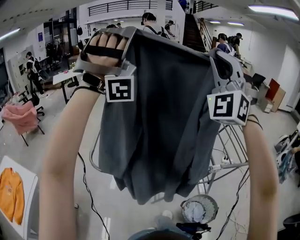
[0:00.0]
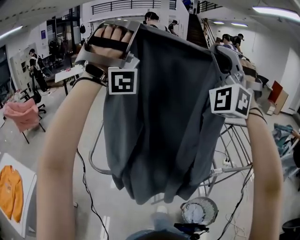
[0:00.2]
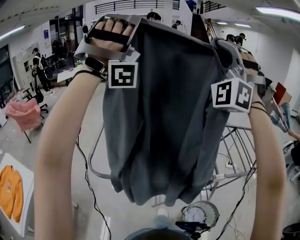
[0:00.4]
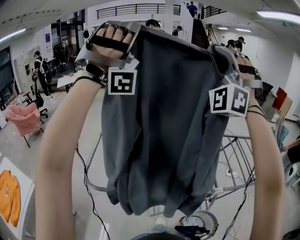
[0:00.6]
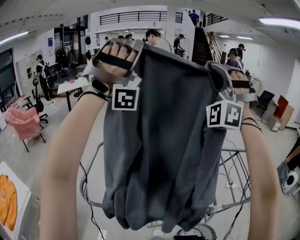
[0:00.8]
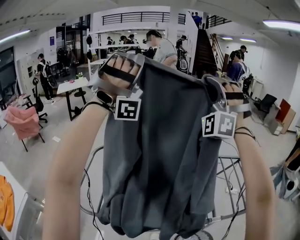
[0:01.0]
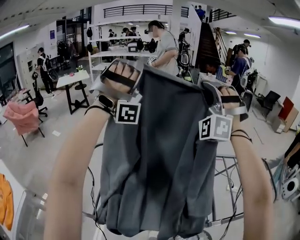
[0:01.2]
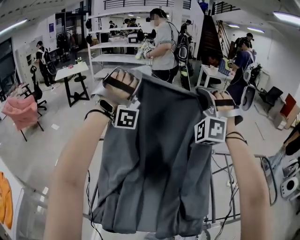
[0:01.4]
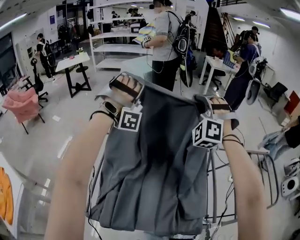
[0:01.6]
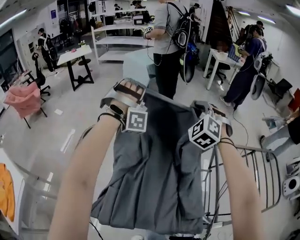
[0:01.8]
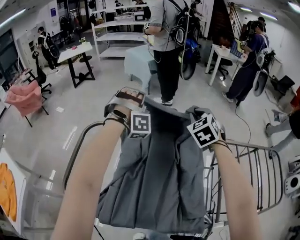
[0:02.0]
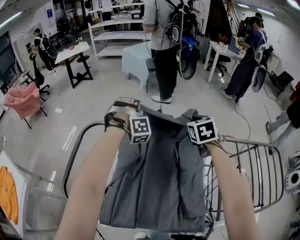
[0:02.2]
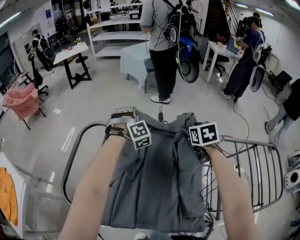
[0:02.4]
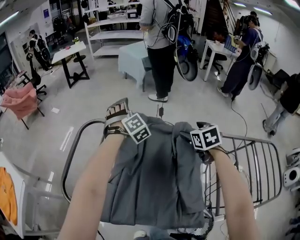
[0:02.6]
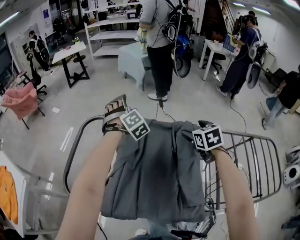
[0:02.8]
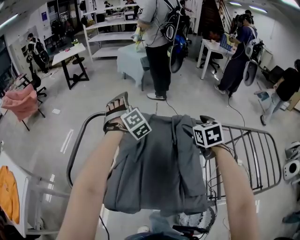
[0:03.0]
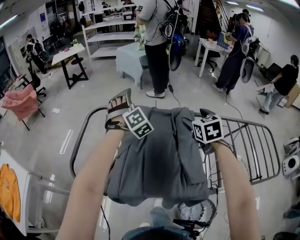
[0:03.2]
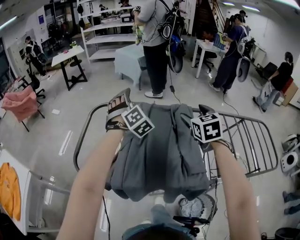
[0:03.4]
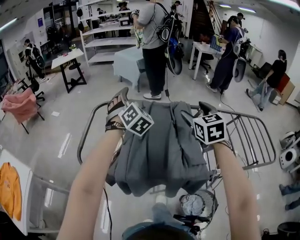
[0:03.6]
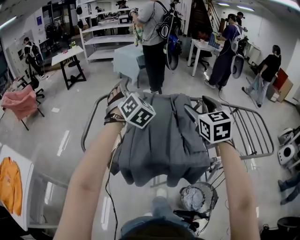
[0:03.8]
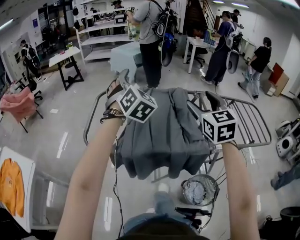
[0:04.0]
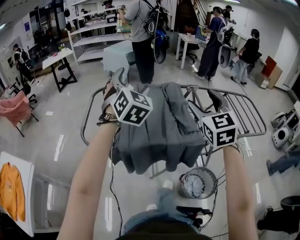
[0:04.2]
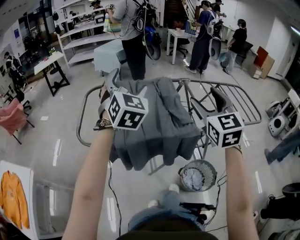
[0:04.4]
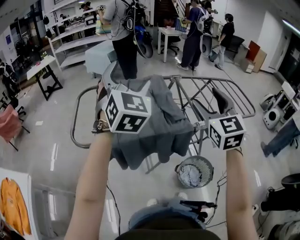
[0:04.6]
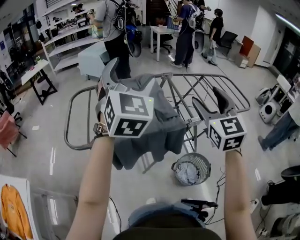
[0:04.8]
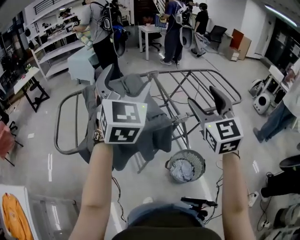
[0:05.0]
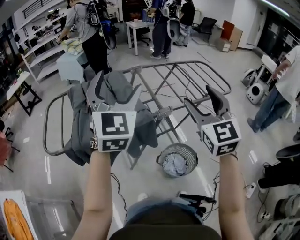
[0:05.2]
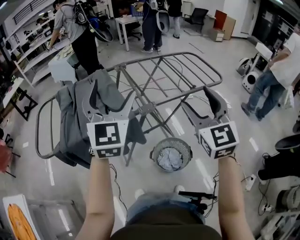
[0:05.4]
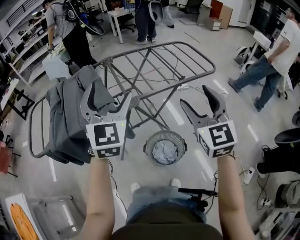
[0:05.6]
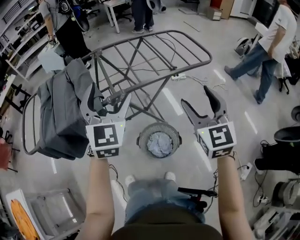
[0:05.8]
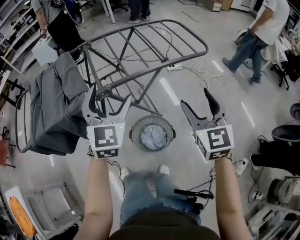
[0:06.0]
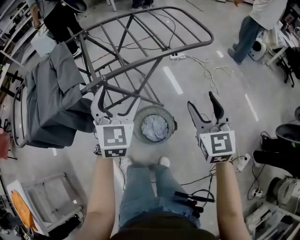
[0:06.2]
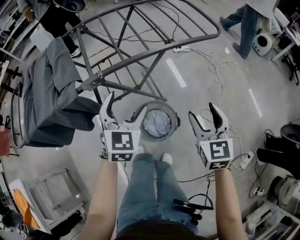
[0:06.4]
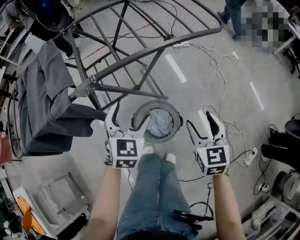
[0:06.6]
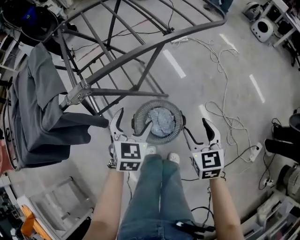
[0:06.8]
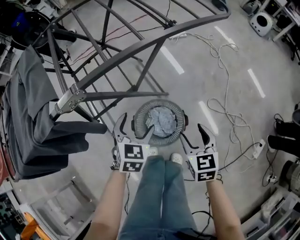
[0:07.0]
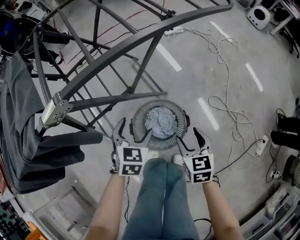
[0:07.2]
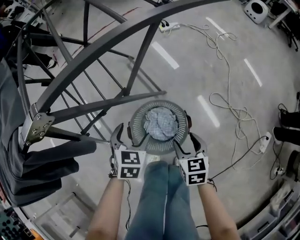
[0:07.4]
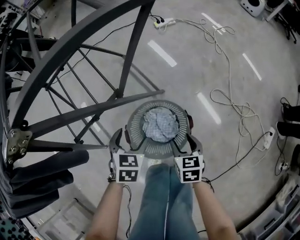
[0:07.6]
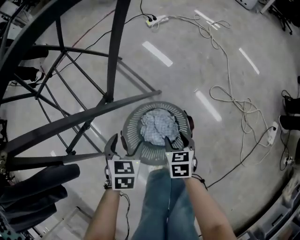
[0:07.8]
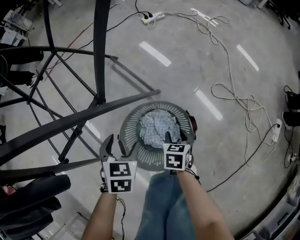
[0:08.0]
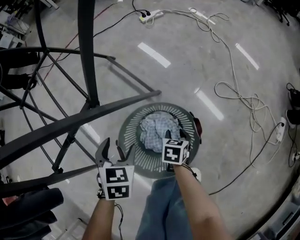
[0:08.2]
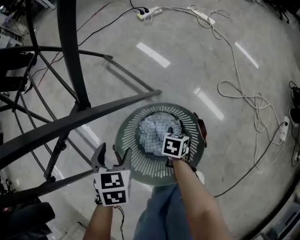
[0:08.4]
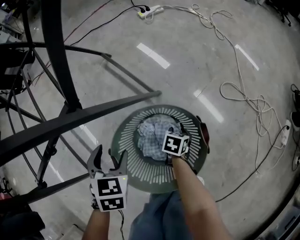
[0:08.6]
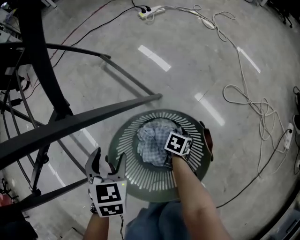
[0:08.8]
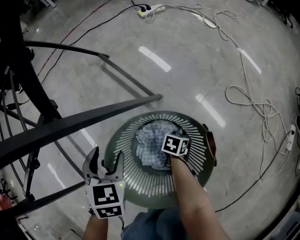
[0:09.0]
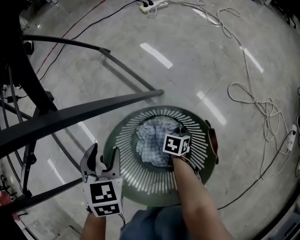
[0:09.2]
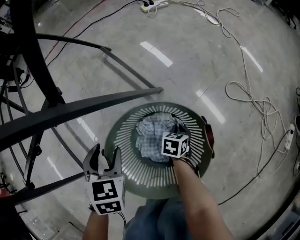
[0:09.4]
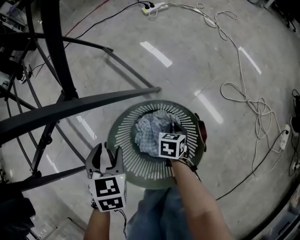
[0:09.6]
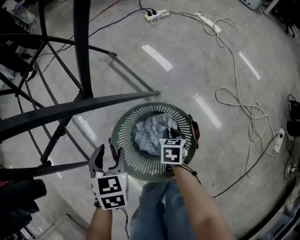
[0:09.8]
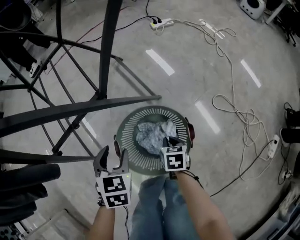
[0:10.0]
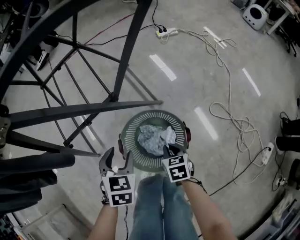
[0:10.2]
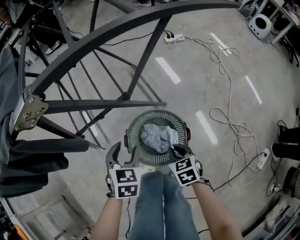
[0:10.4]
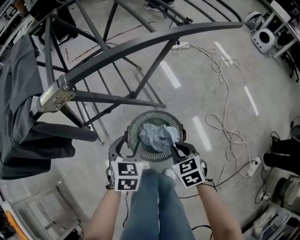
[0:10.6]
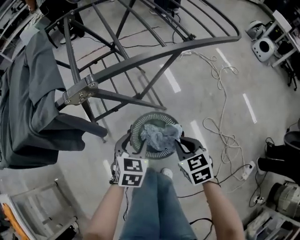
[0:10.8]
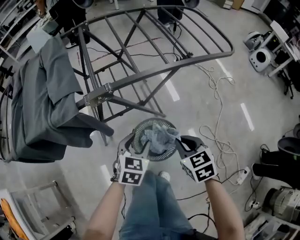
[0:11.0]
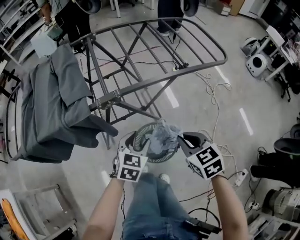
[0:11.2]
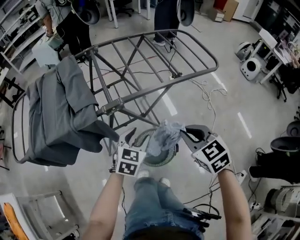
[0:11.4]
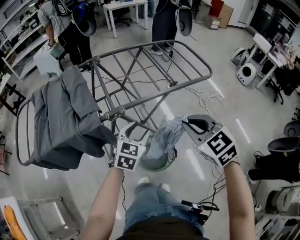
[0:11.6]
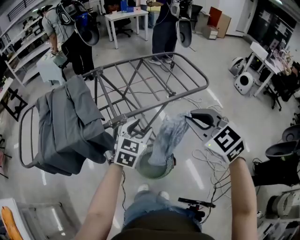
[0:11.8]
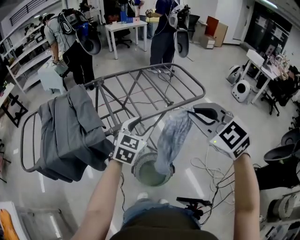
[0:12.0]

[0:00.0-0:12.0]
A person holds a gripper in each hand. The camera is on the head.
0:00.0 to 0:01.6: Both grippers are carried forward, roughly 40 cm. Both grippers move downward, some 25 cm. The left gripper tilts its fingers about 40 degrees downward. The right gripper tilts its fingers approximately 40 degrees downward.
0:01.6 to 0:03.0: The right gripper shifts about 20 cm downward and backward, rotates around the line of its fingers by about 80 degrees, clockwise from behind, and opens its fingers. The left gripper heads downward, covering roughly 20 cm, twists about 60 degrees counterclockwise, seen from behind, and opens.
0:03.0 to 0:04.4: The two grippers go about 40 cm backward and upward. The left gripper changes its angle by some 50 degrees. Meanwhile the right gripper tilts its fingers approximately 30 degrees upward.
0:04.4 to 0:06.0: The two grippers travel together, to the right, some 50 cm. The left gripper rotates approximately 20 degrees.
0:06.0 to 0:07.6: Both grippers travel together downward, some 50 cm. The right gripper tips its fingers downward by some 40 degrees. Meanwhile the left gripper angles its fingers downward, by some 50 degrees.
0:07.6 to 0:09.0: The left gripper goes roughly 20 cm downward. Meanwhile the right gripper goes about 40 cm downward, and changes its angle by roughly 40 degrees.
0:09.0 to 0:10.4: The right gripper heads upward, covering some 40 cm, and changes its angle by about 60 degrees. The left gripper moves upward, about 25 cm.
0:10.4 to 0:12.0: The two grippers go roughly 60 cm upward. The right gripper twists about 50 degrees counterclockwise, seen from behind; the left gripper tilts its fingers about 30 degrees upward.

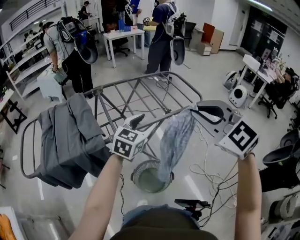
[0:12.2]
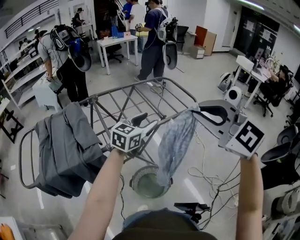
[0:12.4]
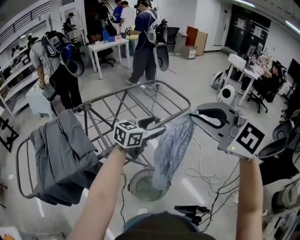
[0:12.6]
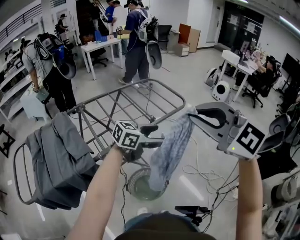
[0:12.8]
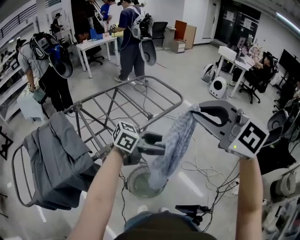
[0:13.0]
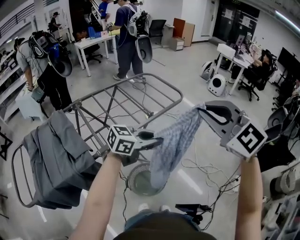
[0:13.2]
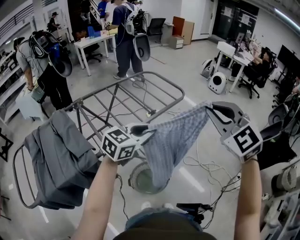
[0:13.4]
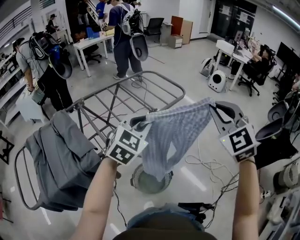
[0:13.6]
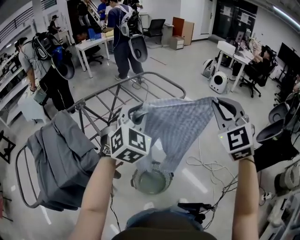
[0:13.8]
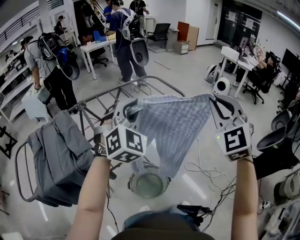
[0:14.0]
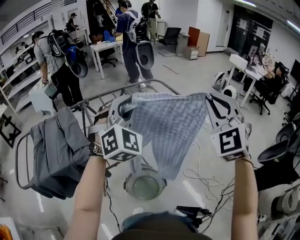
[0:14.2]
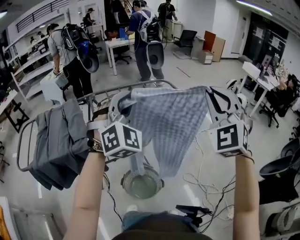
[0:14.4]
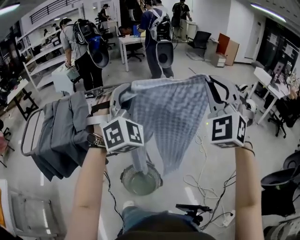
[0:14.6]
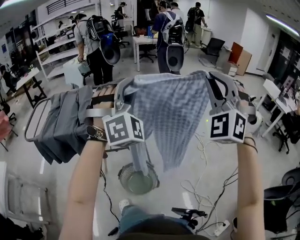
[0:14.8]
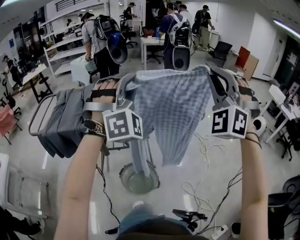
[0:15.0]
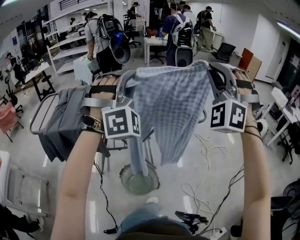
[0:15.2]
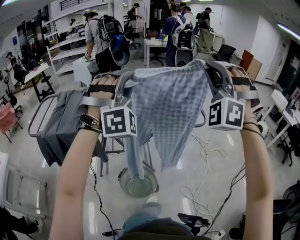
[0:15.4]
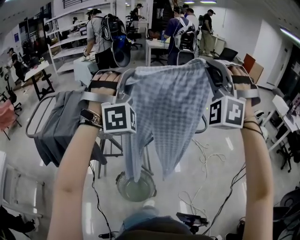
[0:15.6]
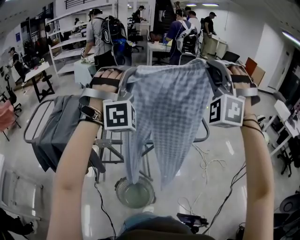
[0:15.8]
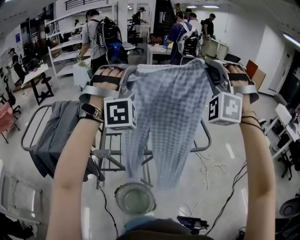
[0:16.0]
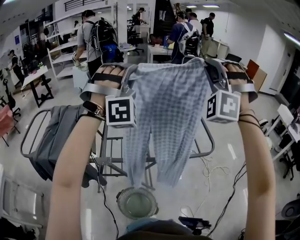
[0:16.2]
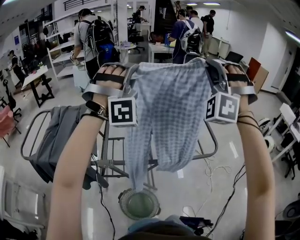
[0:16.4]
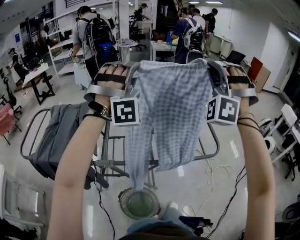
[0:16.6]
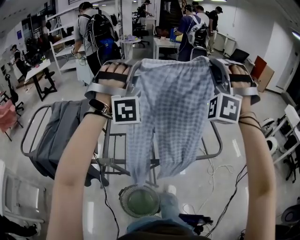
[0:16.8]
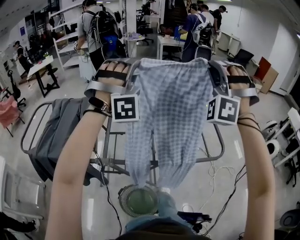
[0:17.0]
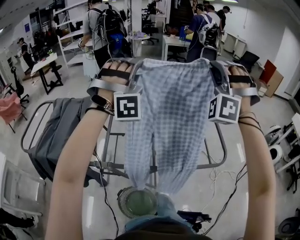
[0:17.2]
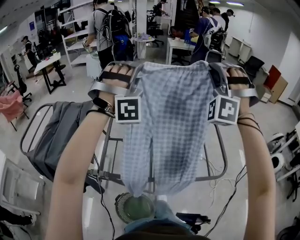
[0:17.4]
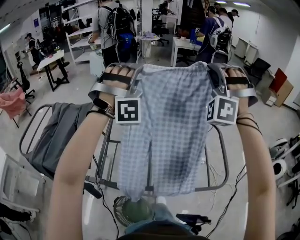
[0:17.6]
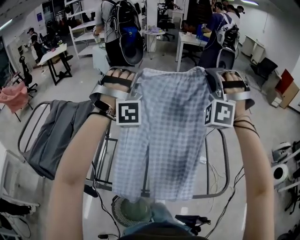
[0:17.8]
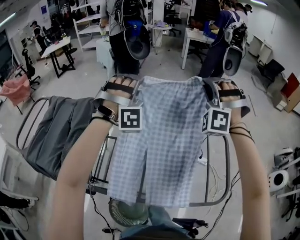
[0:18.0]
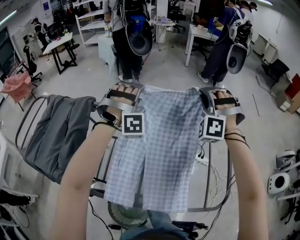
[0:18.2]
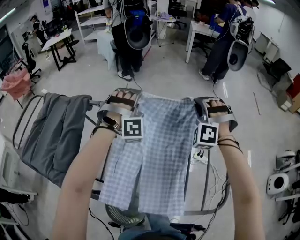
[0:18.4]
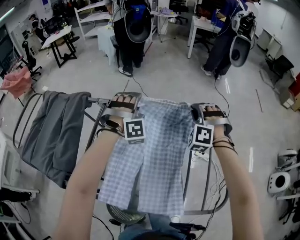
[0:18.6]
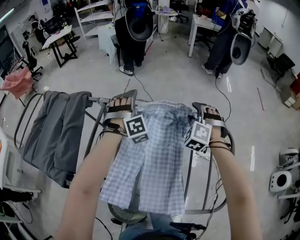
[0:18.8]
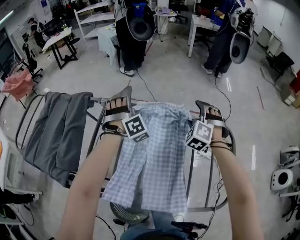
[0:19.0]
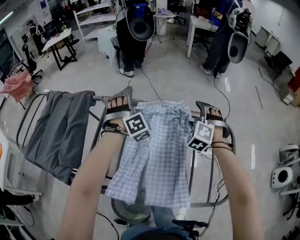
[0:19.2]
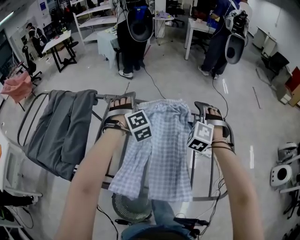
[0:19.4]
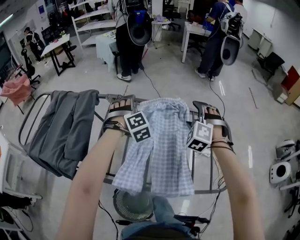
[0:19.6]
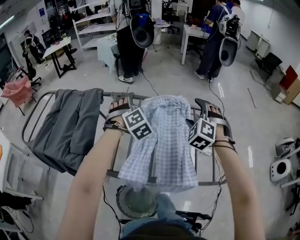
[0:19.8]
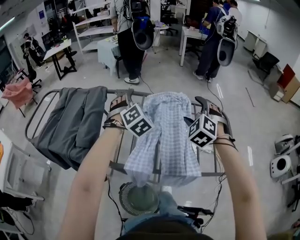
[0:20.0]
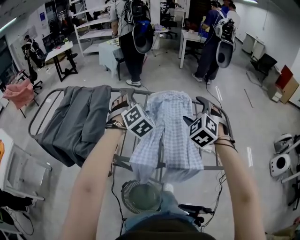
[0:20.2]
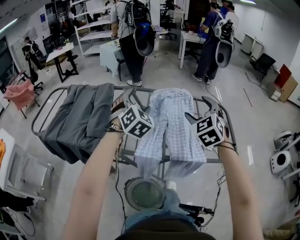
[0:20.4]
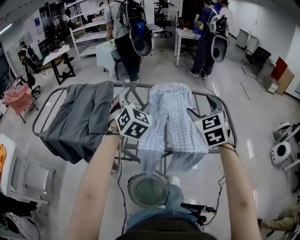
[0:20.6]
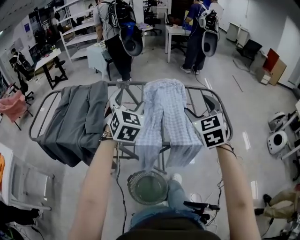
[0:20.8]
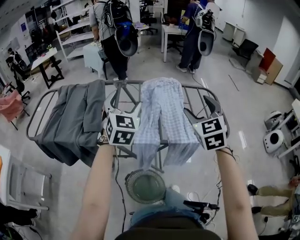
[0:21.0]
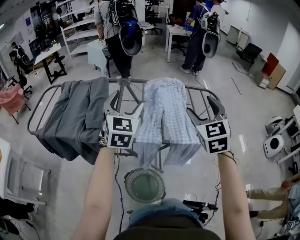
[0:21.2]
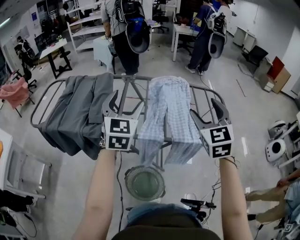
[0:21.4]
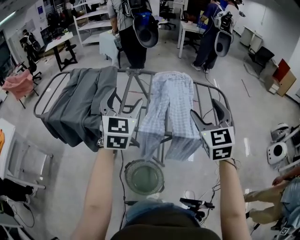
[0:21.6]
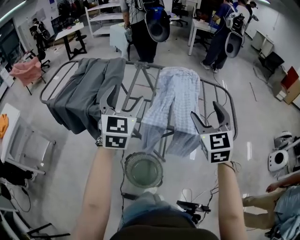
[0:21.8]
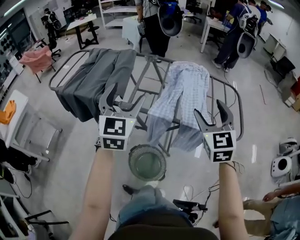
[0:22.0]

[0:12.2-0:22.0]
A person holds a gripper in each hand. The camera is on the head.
0:12.2 to 0:13.6: The right gripper changes place by some 10 cm, and changes its angle by approximately 40 degrees. Meanwhile the left gripper changes its angle by roughly 30 degrees, and closes its fingers.
0:13.6 to 0:15.0: Both grippers travel together upward, about 15 cm. The right gripper rotates around the line of its fingers by approximately 40 degrees, counterclockwise from behind; the left gripper swivels about 80 degrees.
0:15.0 to 0:16.4: Both grippers move forward, some 30 cm.
0:16.4 to 0:17.8: The left gripper travels forward and downward by roughly 25 cm. The right gripper goes approximately 30 cm forward.
0:17.8 to 0:19.2: The two grippers go some 25 cm downward. The left gripper changes its angle by some 40 degrees, and opens its fingers. The right gripper angles its fingers downward, by approximately 40 degrees, and opens.
0:19.2 to 0:20.6: Both grippers move backward and upward, about 30 cm. The right gripper rolls clockwise, seen from behind, by some 40 degrees; the left gripper turns by about 40 degrees.
0:20.6 to 0:22.0: The two grippers go roughly 15 cm backward. The left gripper swivels about 30 degrees.

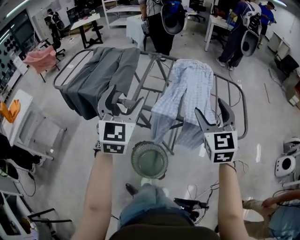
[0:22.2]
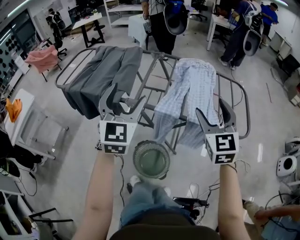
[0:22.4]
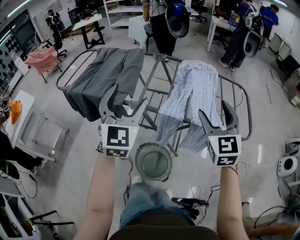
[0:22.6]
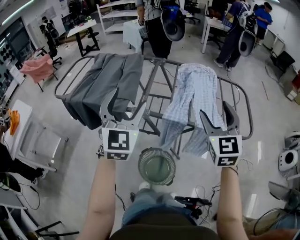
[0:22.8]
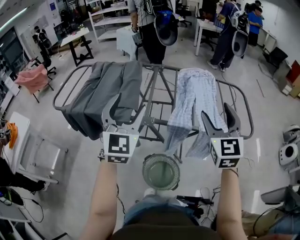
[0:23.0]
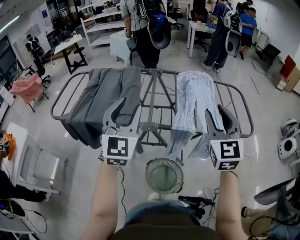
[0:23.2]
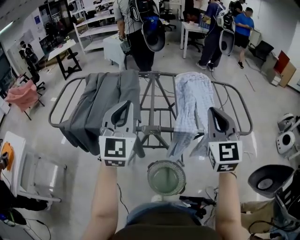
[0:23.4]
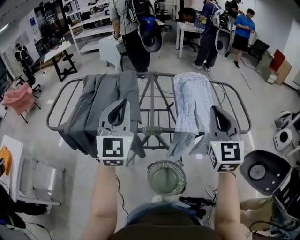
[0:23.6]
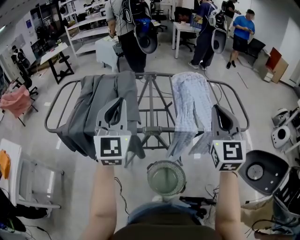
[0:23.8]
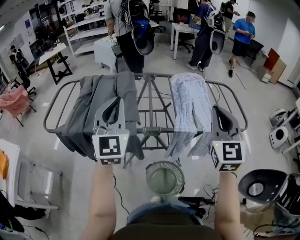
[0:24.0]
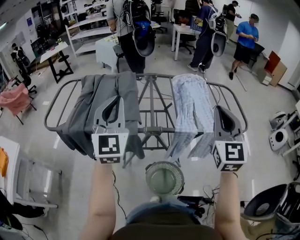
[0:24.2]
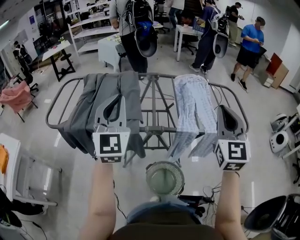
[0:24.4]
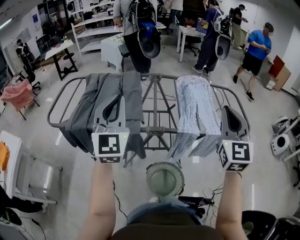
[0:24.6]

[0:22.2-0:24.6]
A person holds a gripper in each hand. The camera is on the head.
0:22.2 to 0:23.4: The left gripper goes roughly 15 cm to the left and forward, and closes. The right gripper travels to the left by about 10 cm, and closes.
0:23.4 to 0:24.6: The left gripper is displaced to the left by roughly 5 cm.
